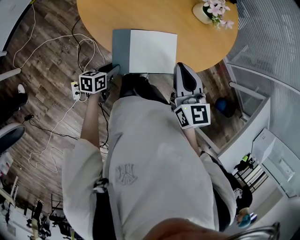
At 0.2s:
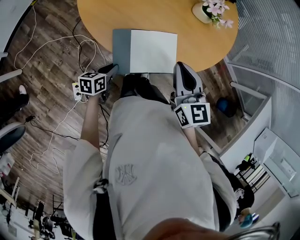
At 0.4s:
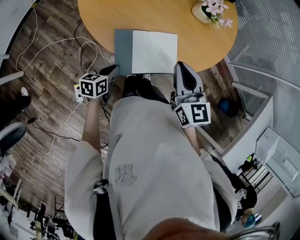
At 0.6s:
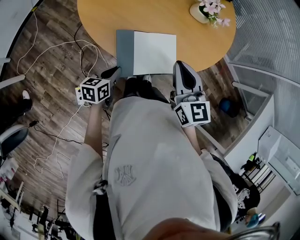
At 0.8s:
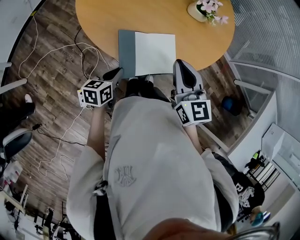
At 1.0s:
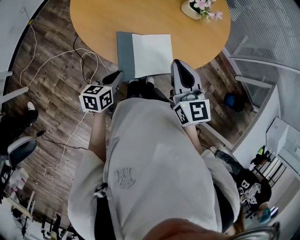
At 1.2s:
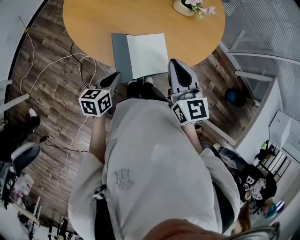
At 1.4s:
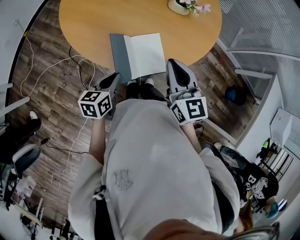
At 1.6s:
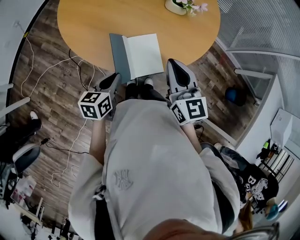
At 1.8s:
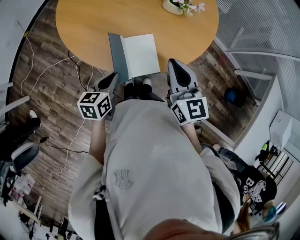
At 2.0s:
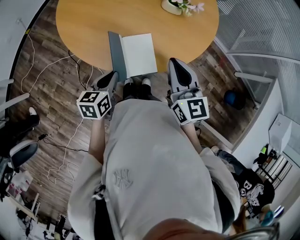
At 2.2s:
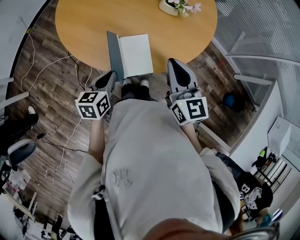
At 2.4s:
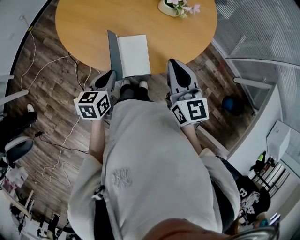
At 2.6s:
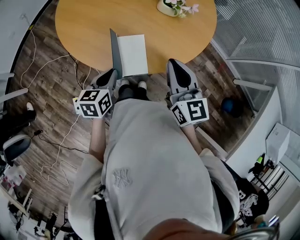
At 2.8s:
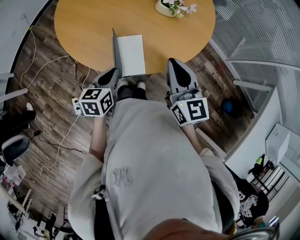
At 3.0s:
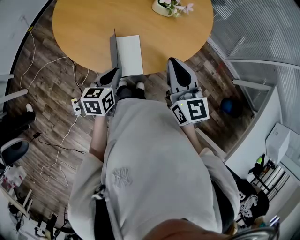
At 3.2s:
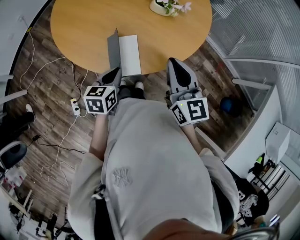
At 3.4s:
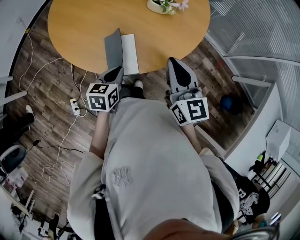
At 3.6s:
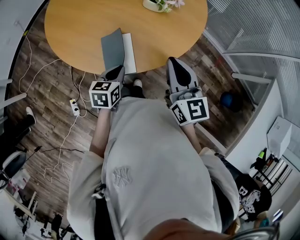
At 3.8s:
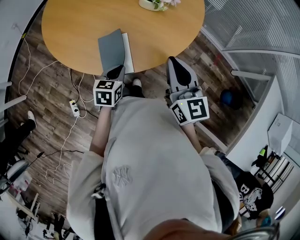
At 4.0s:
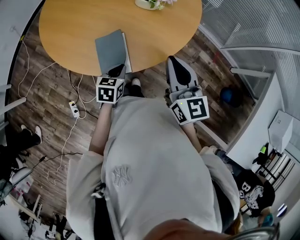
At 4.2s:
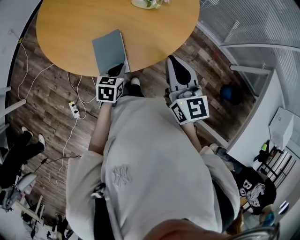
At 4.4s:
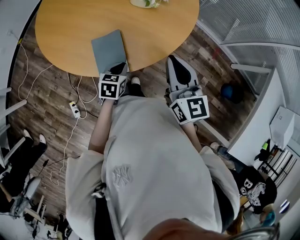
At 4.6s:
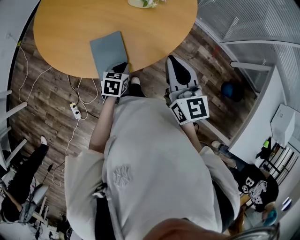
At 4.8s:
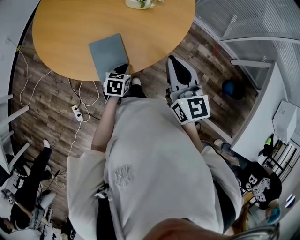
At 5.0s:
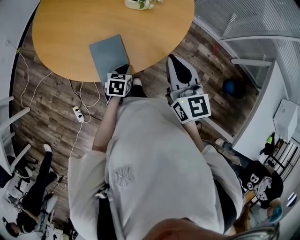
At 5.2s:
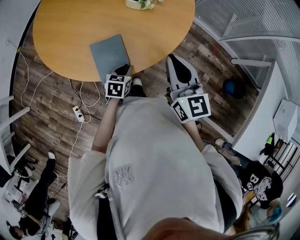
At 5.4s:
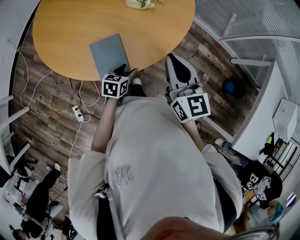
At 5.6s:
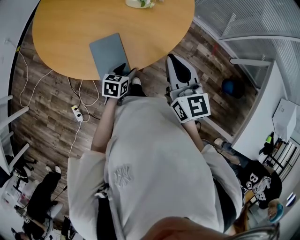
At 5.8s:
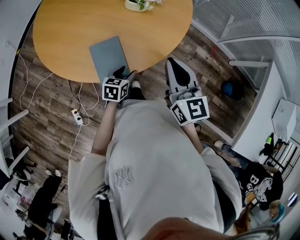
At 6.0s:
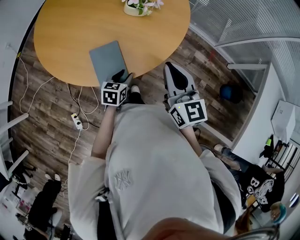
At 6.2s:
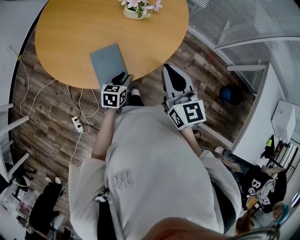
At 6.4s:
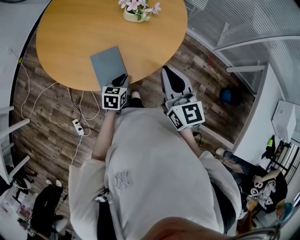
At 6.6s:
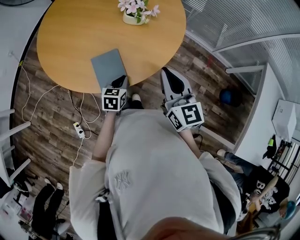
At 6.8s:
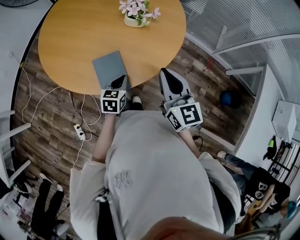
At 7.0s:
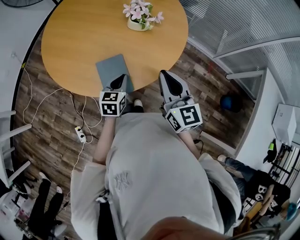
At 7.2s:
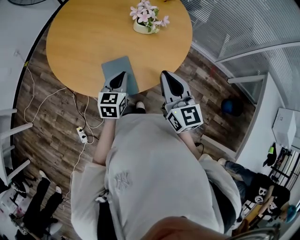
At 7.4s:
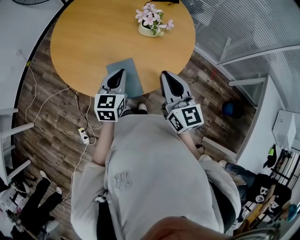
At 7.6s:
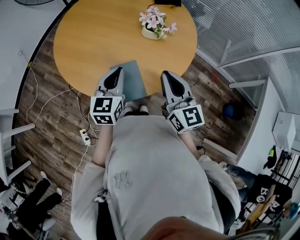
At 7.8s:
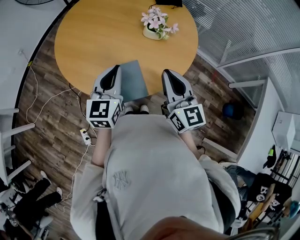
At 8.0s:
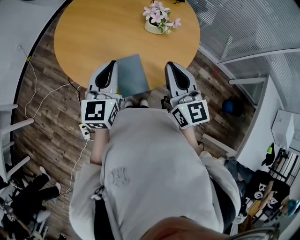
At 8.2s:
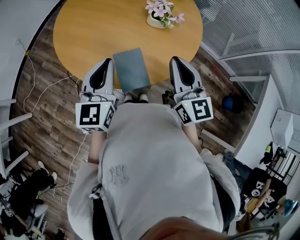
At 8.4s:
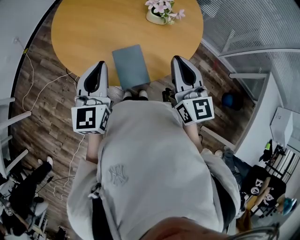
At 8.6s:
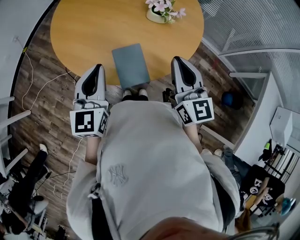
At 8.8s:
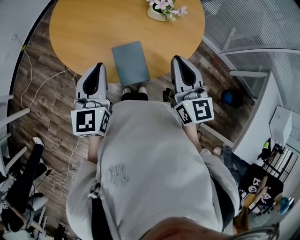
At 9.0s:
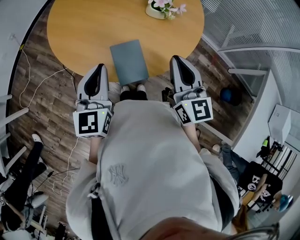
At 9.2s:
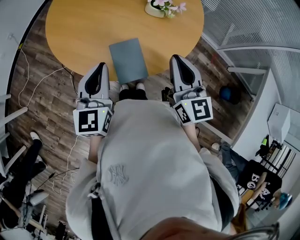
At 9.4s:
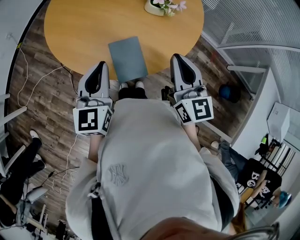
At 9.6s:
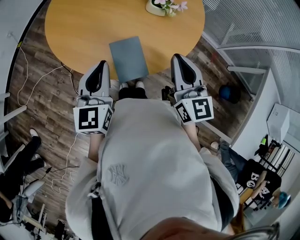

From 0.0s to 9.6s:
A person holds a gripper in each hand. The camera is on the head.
From 0.0s to 1.6s: The right gripper goes roughly 5 cm to the right. The left gripper travels upward and to the right by approximately 15 cm, and closes up.
From 1.6s to 3.2s: Both grippers travel together to the right, some 10 cm.
From 3.2s to 4.8s: The right gripper shifts some 5 cm to the right. The left gripper is displaced downward and to the right by approximately 15 cm, and turns by some 20 degrees.
From 4.8s to 6.4s: The left gripper opens and closes again.
From 6.4s to 8.0s: The left gripper is displaced upward and to the left by some 30 cm, and tilts its fingers approximately 30 degrees upward, while the right gripper moves to the left and upward, roughly 10 cm.
From 8.0s to 9.6s: The left gripper ends up roughly 5 cm from where it was.

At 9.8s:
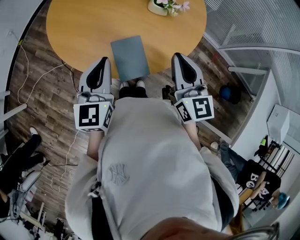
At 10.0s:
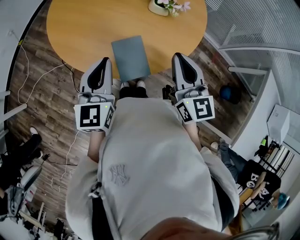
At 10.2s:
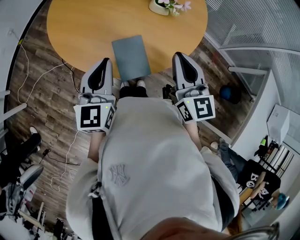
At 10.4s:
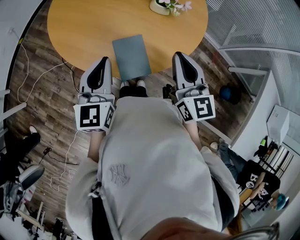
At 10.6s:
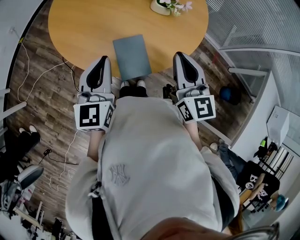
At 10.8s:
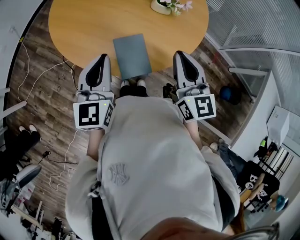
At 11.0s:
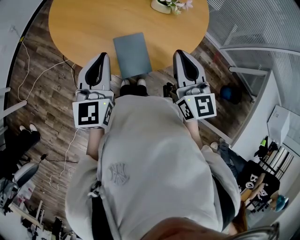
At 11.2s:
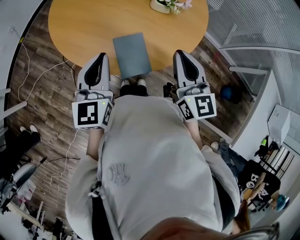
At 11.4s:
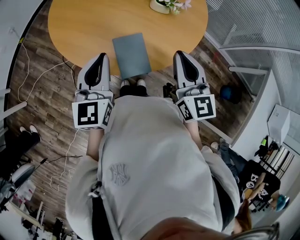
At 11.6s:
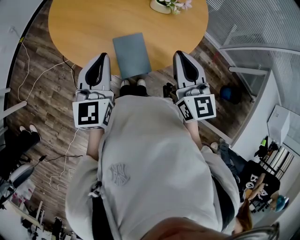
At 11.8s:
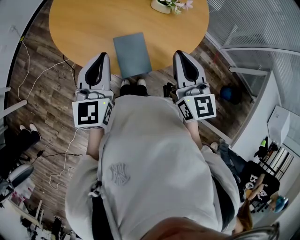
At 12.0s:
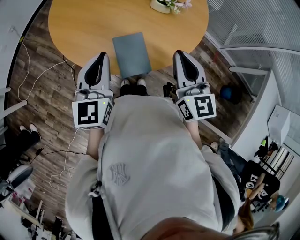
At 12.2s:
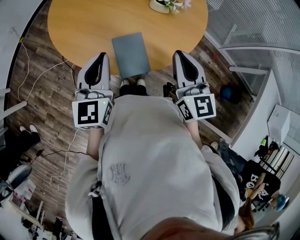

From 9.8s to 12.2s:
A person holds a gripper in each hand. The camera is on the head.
From 9.8s to 11.0s: The grippers move only a little.
From 11.0s to 12.2s: The two grippers keep their place.

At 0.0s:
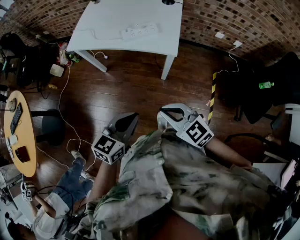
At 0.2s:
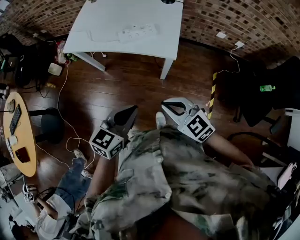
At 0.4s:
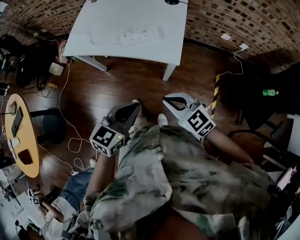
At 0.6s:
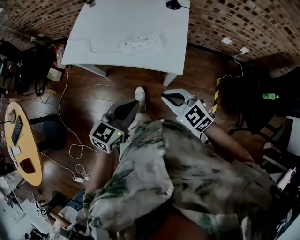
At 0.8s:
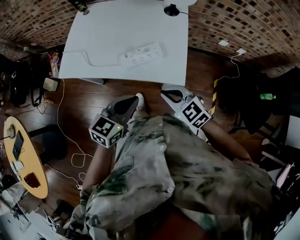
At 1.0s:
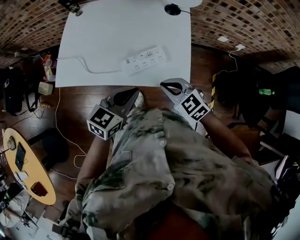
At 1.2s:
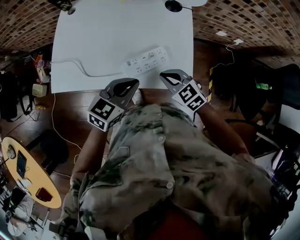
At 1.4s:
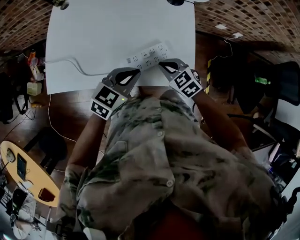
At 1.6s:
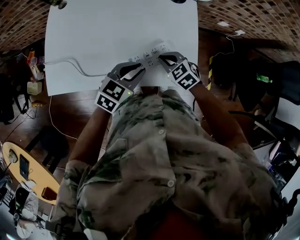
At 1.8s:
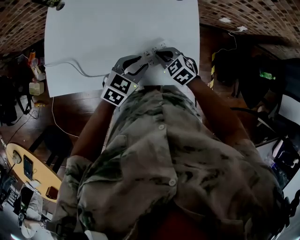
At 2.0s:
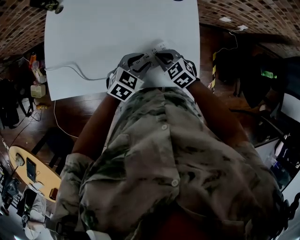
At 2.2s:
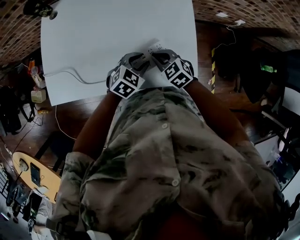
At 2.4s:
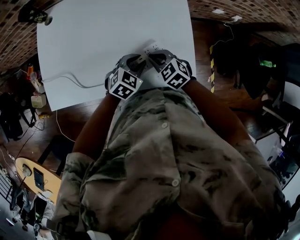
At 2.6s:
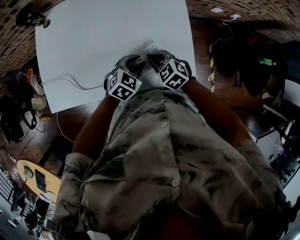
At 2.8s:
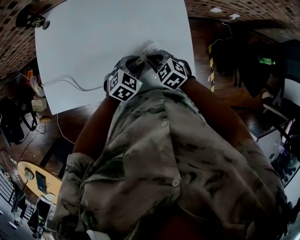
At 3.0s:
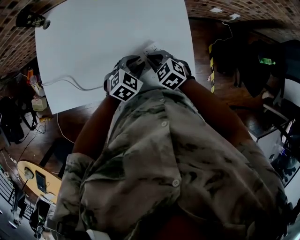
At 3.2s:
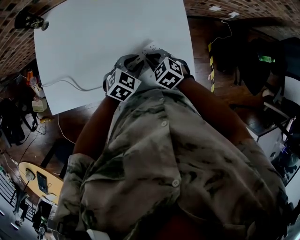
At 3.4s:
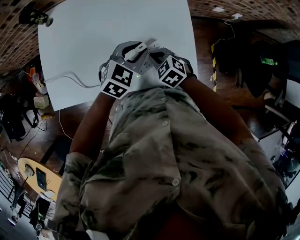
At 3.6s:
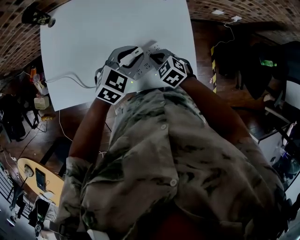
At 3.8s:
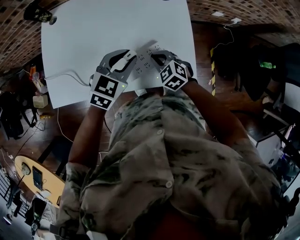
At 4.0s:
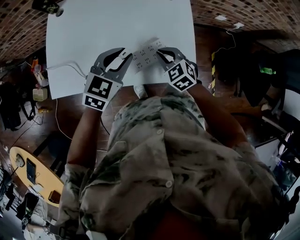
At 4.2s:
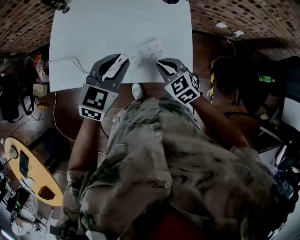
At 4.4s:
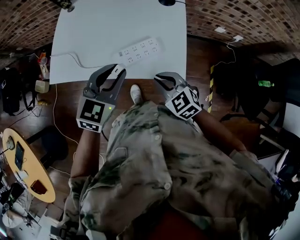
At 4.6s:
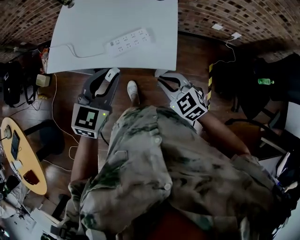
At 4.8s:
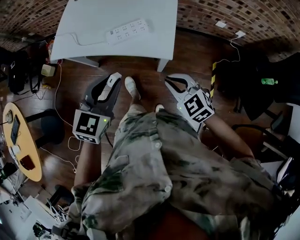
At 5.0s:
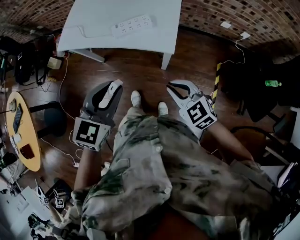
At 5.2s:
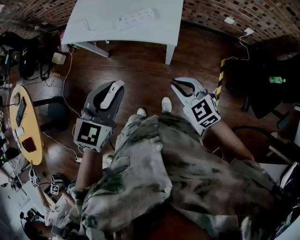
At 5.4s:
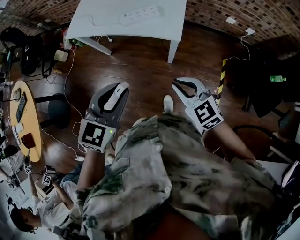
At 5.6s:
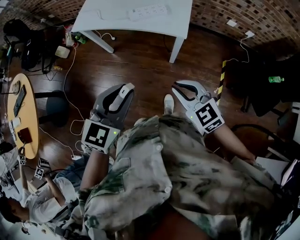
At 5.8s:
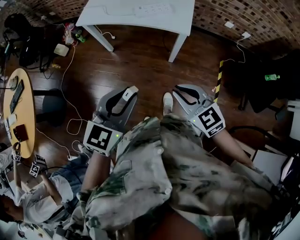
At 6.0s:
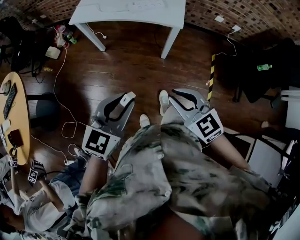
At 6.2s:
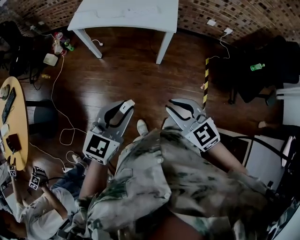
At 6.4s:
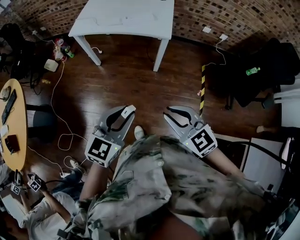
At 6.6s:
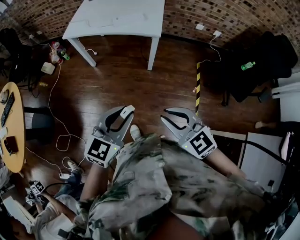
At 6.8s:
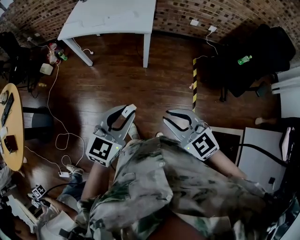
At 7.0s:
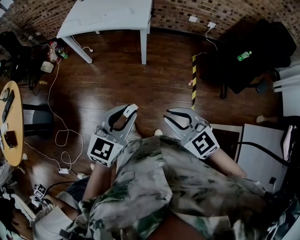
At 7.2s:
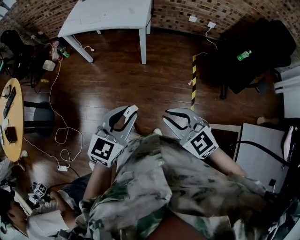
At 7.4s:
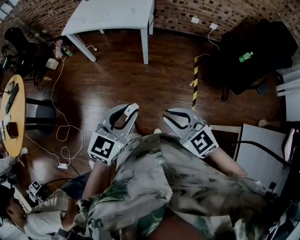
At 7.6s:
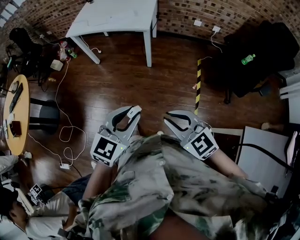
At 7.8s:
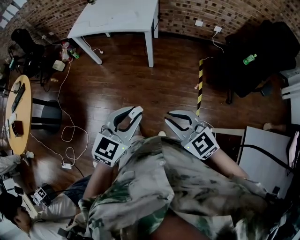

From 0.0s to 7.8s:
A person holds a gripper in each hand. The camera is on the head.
From 0.0s to 1.6s: The pair of grippers is taken forward, some 50 cm. The left gripper turns by approximately 30 degrees; the right gripper is displaced downward by about 20 cm, and swivels approximately 30 degrees.
From 1.6s to 3.2s: The left gripper travels downward by roughly 5 cm.
From 3.2s to 4.6s: The left gripper heads upward and backward, covering roughly 30 cm, and turns by some 30 degrees. The right gripper heads backward, upward and to the right, covering some 30 cm, and rotates some 20 degrees.
From 4.6s to 6.2s: The two grippers travel together, backward, about 40 cm.
From 6.2s to 7.8s: The right gripper is displaced backward and to the right by about 30 cm, while the left gripper goes about 30 cm to the right and backward.

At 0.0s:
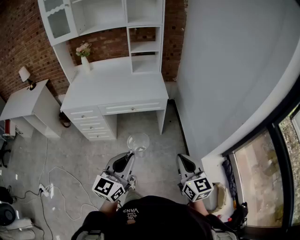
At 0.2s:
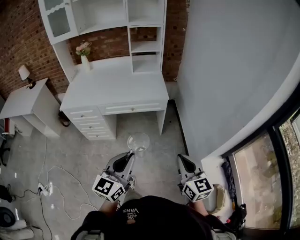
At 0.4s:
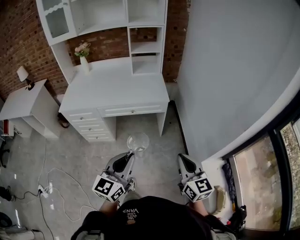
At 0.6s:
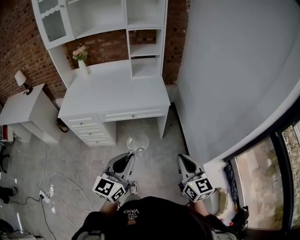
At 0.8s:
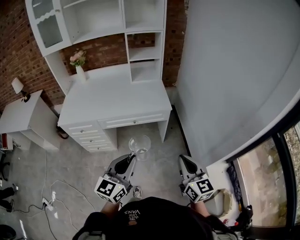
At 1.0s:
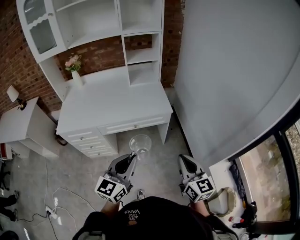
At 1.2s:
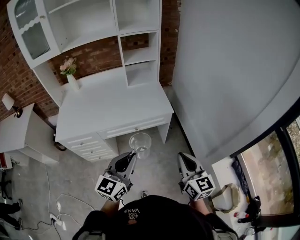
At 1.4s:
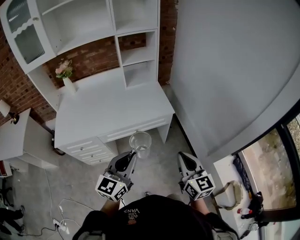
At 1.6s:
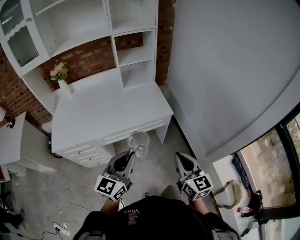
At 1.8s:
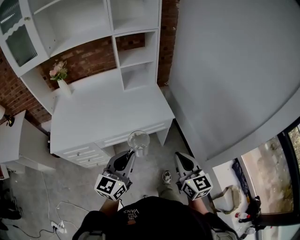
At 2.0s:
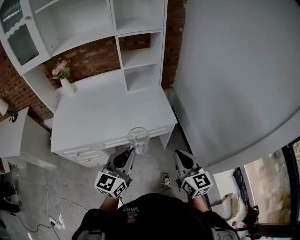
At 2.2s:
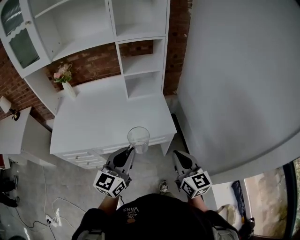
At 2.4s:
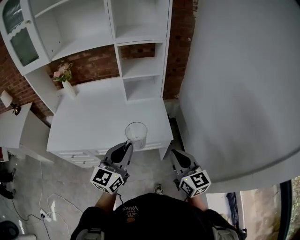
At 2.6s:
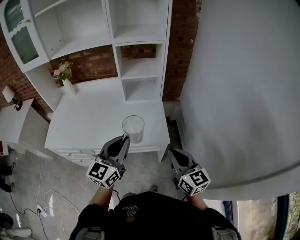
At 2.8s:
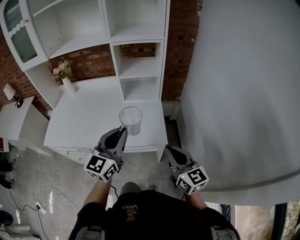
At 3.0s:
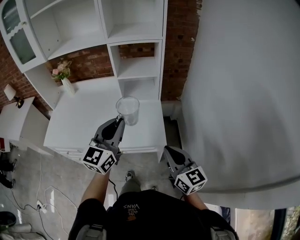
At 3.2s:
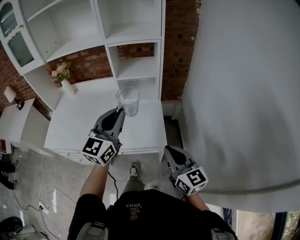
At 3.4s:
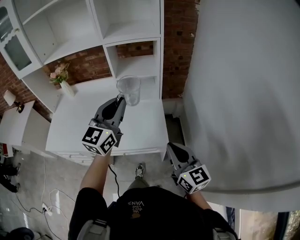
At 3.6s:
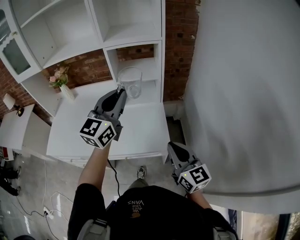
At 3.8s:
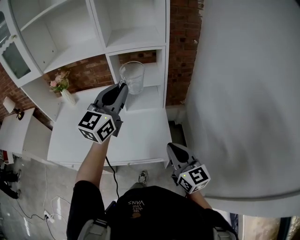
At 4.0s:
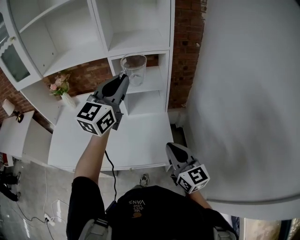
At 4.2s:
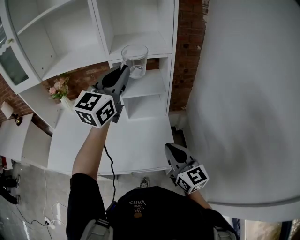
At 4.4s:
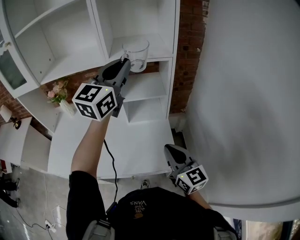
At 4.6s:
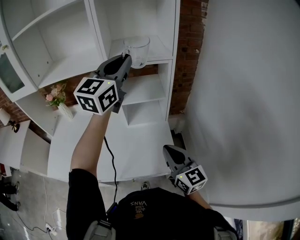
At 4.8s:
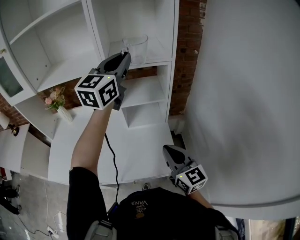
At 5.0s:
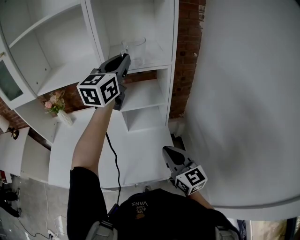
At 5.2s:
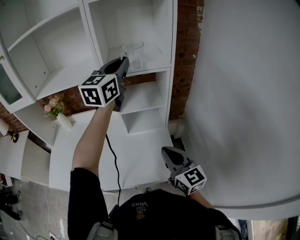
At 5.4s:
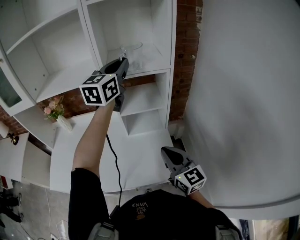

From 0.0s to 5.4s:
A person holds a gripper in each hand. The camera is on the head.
From 0.0s to 1.4s: Both grippers travel together forward and to the left, about 25 cm.
From 1.4s to 2.8s: Both grippers travel together forward, some 30 cm. The right gripper rotates roughly 20 degrees.
From 2.8s to 4.0s: The left gripper goes approximately 30 cm forward and upward; the right gripper shifts approximately 10 cm forward.
From 4.0s to 5.4s: The right gripper heads forward, covering some 10 cm; the left gripper shifts some 15 cm forward.
